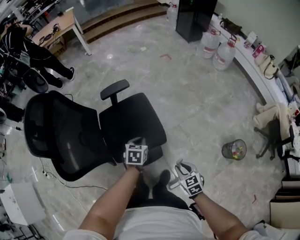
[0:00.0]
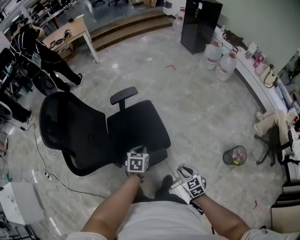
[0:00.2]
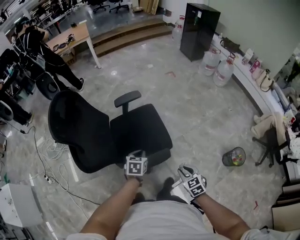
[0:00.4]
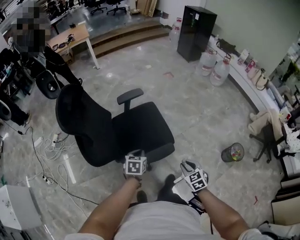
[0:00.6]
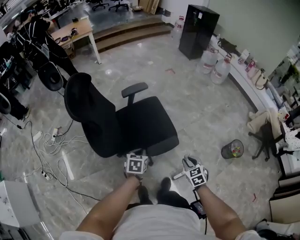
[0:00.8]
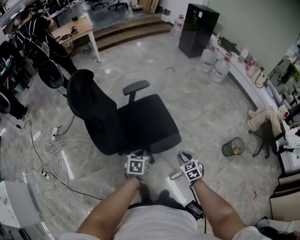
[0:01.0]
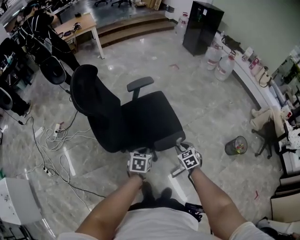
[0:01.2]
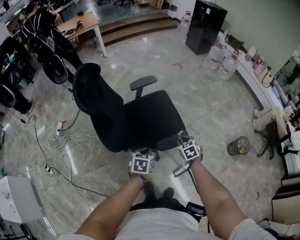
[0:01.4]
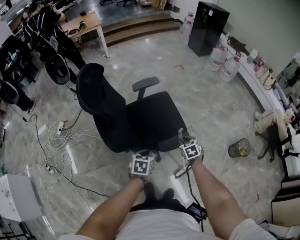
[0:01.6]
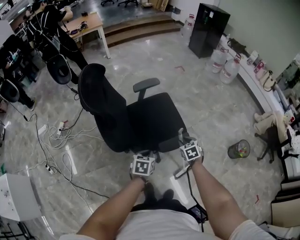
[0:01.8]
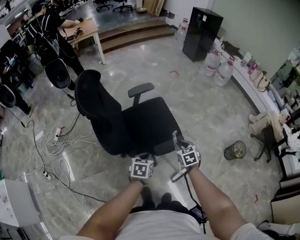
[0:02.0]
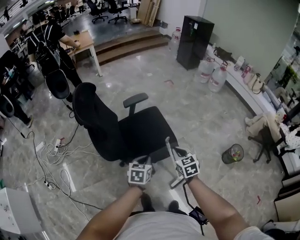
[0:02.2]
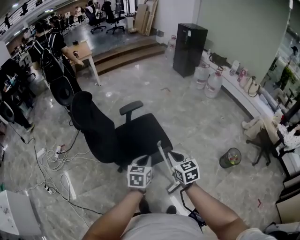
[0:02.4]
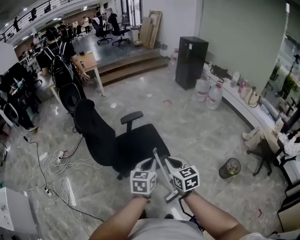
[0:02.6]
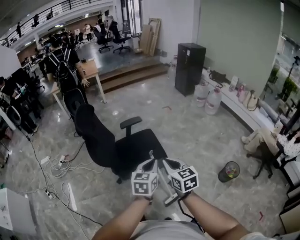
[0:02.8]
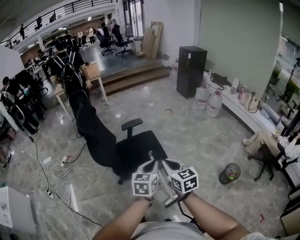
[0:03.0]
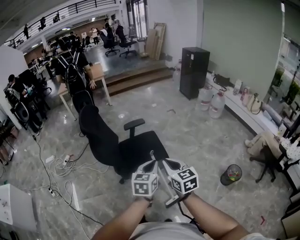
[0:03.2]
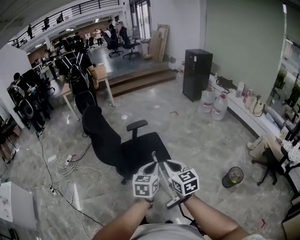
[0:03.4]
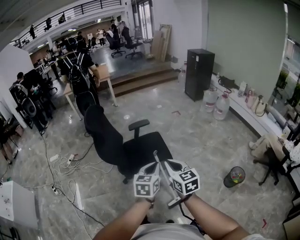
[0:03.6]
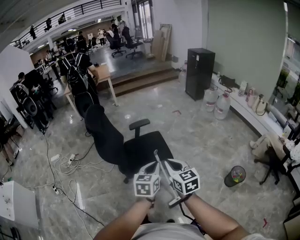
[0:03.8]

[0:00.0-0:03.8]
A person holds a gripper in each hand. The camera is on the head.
0:00.0 to 0:01.2: The left gripper is displaced backward and to the left by some 30 cm; the right gripper goes approximately 20 cm to the left.
0:01.2 to 0:02.6: The left gripper heads upward and to the right, covering some 30 cm, and swivels some 20 degrees. The right gripper goes roughly 30 cm upward, and swivels approximately 30 degrees.
0:02.6 to 0:03.8: The left gripper goes some 10 cm backward; the right gripper travels backward and upward by about 10 cm.

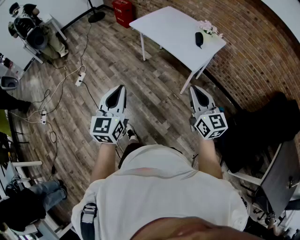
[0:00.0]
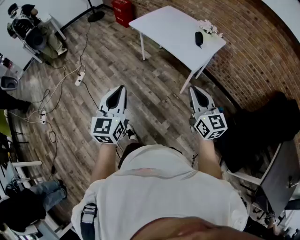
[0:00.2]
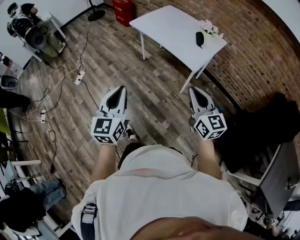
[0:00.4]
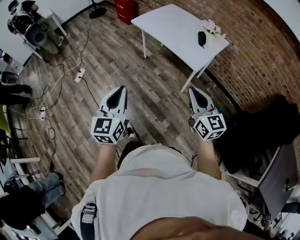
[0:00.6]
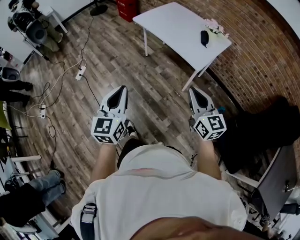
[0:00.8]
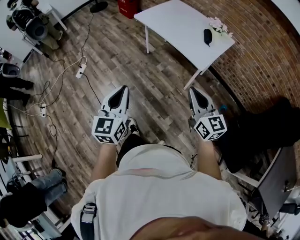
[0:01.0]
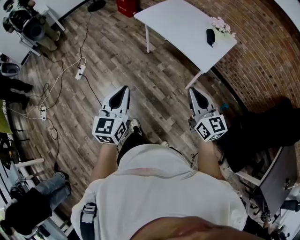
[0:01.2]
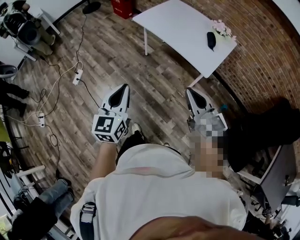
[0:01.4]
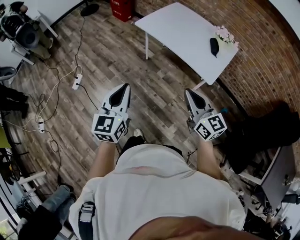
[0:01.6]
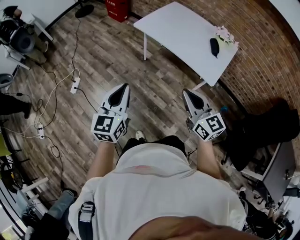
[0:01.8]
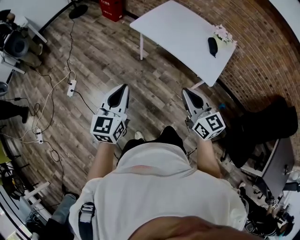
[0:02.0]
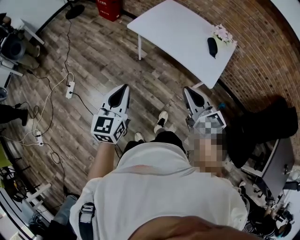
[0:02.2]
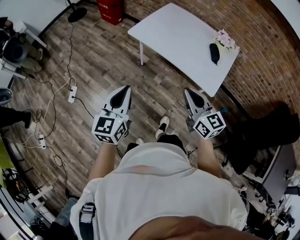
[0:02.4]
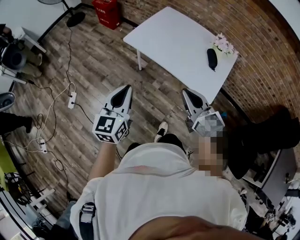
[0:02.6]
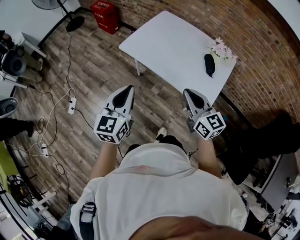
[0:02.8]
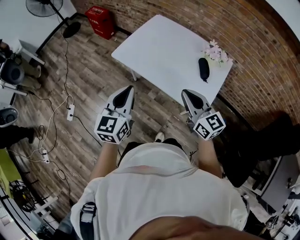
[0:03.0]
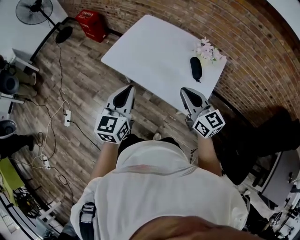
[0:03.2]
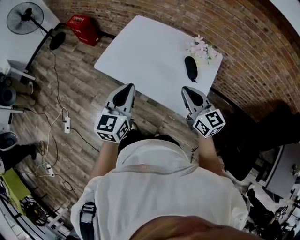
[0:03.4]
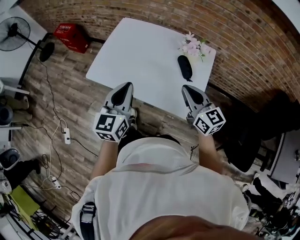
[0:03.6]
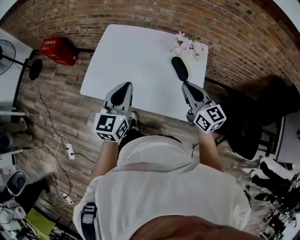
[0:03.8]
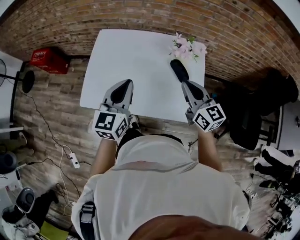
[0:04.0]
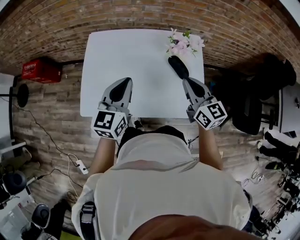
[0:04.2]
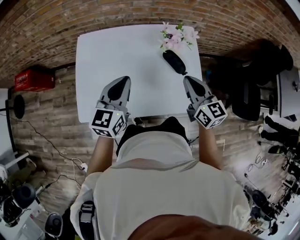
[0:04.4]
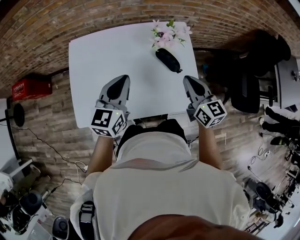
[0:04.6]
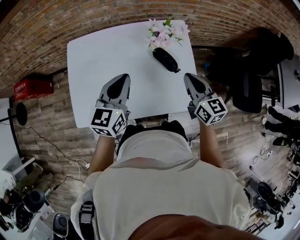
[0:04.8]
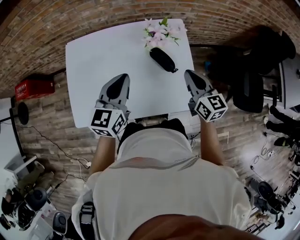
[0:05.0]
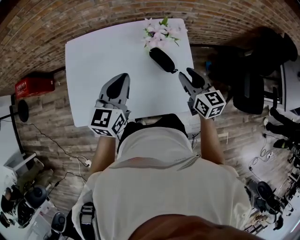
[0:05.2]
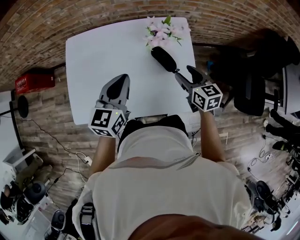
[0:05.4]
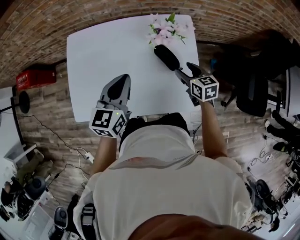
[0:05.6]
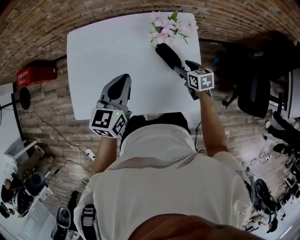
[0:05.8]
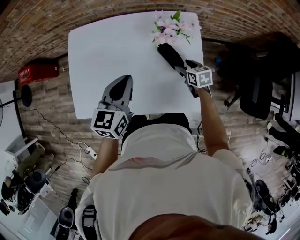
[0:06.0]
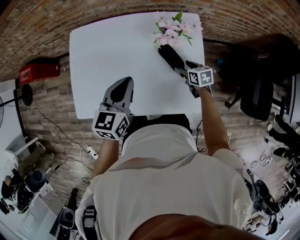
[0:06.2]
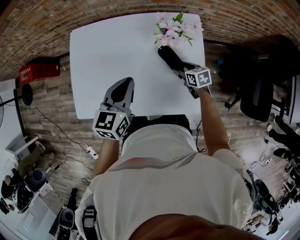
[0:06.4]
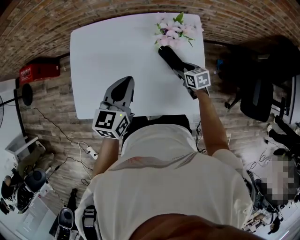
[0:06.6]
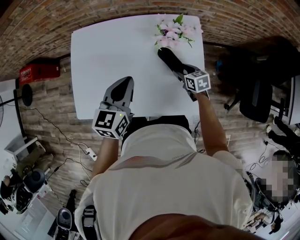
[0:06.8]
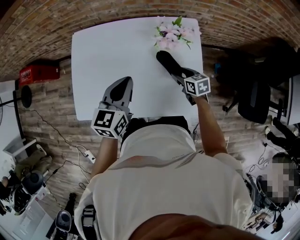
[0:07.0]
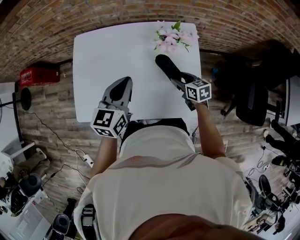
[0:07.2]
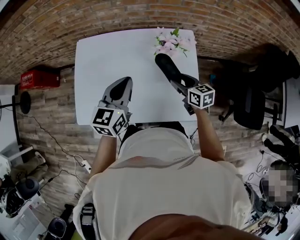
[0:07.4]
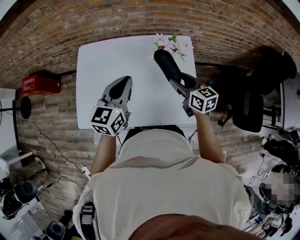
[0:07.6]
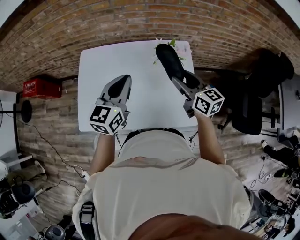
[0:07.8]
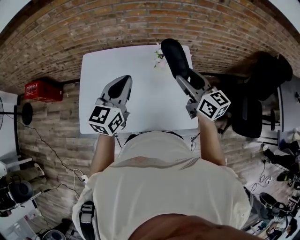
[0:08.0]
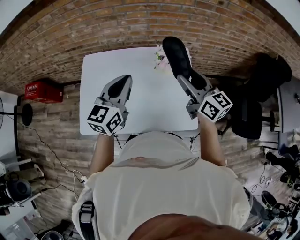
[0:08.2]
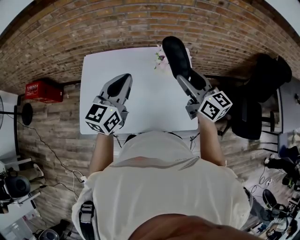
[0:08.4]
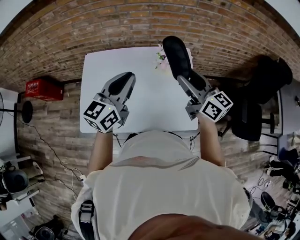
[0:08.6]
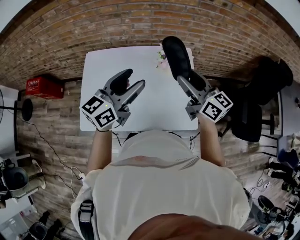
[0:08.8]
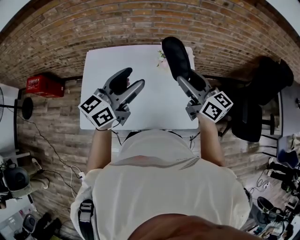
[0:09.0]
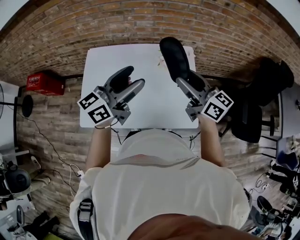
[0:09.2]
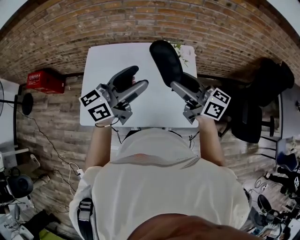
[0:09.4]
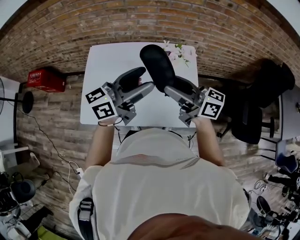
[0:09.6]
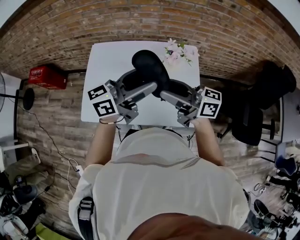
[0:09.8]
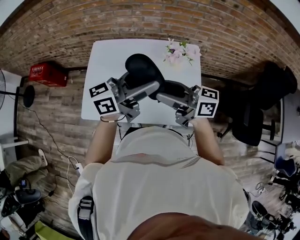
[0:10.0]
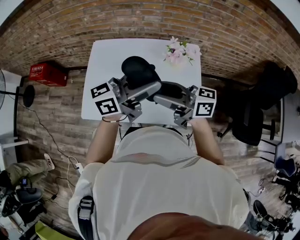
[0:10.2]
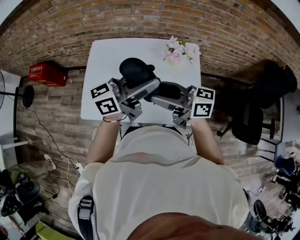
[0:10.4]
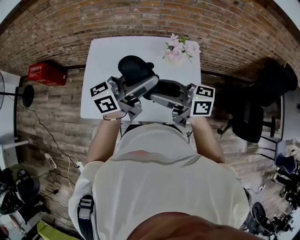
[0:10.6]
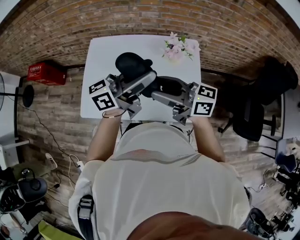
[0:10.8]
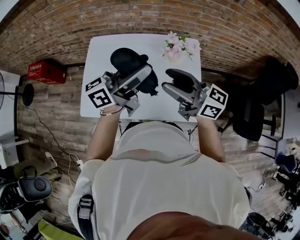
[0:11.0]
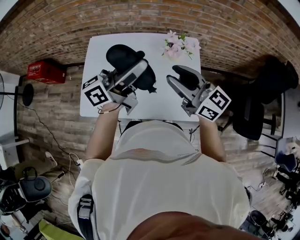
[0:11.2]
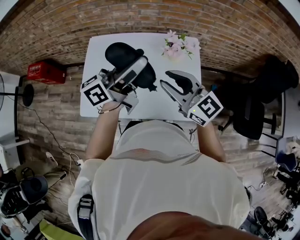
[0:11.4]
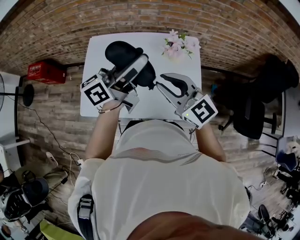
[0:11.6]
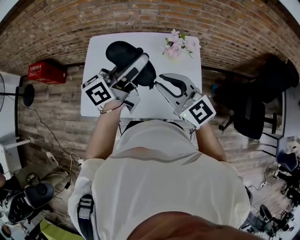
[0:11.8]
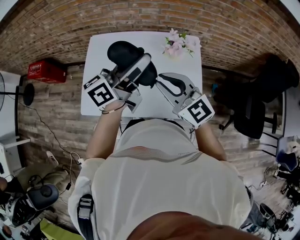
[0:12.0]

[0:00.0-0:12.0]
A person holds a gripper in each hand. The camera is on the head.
0:00.0 to 0:01.6: The grippers both shift forward and to the left by some 20 cm.
0:01.6 to 0:03.0: The grippers both shift forward and to the right by approximately 30 cm.
0:03.0 to 0:04.4: The left gripper shifts by some 35 cm, and rotates about 40 degrees. Meanwhile the right gripper changes place by some 25 cm, and changes its angle by approximately 50 degrees.
0:04.4 to 0:06.0: The left gripper goes approximately 10 cm to the right; the right gripper shifts about 25 cm downward and forward, tips its fingers downward by some 30 degrees, and opens.
0:06.0 to 0:07.6: The right gripper travels upward by roughly 20 cm, and swivels approximately 30 degrees. The left gripper shifts some 5 cm upward.
0:07.6 to 0:09.0: The right gripper is displaced upward by some 15 cm, and turns by approximately 20 degrees. Meanwhile the left gripper heads upward, covering about 10 cm, rotates approximately 30 degrees, and opens up.
0:09.0 to 0:10.4: The left gripper swivels about 20 degrees; the right gripper shifts by some 15 cm, and turns by some 40 degrees.
0:10.4 to 0:12.0: The left gripper moves some 5 cm. The right gripper rolls counterclockwise, seen from behind, by approximately 40 degrees, and closes its fingers.

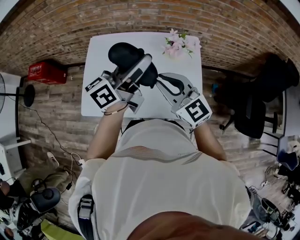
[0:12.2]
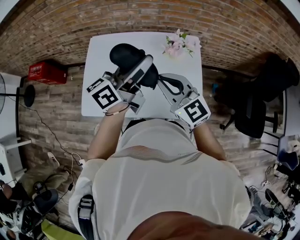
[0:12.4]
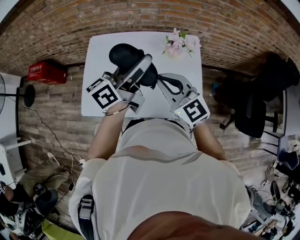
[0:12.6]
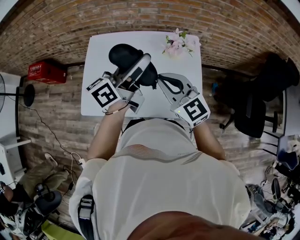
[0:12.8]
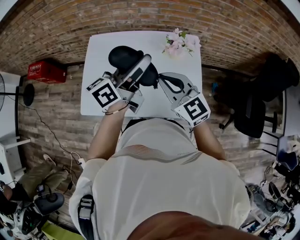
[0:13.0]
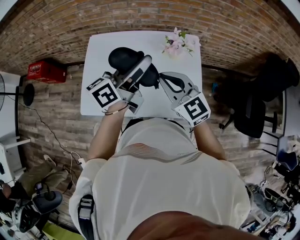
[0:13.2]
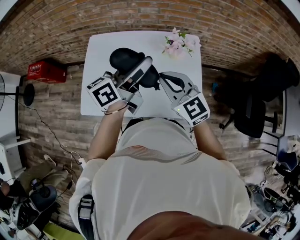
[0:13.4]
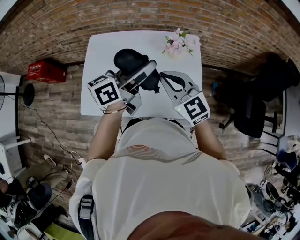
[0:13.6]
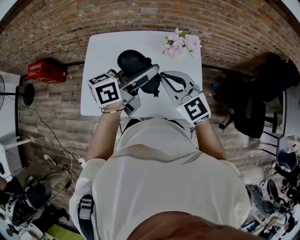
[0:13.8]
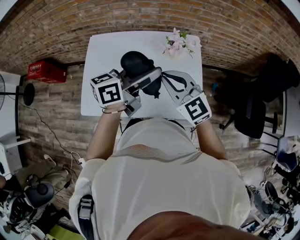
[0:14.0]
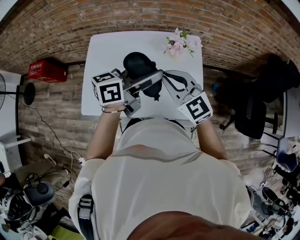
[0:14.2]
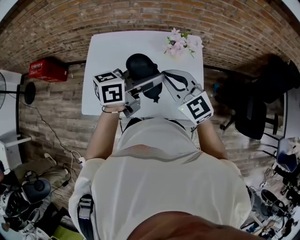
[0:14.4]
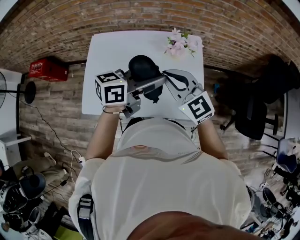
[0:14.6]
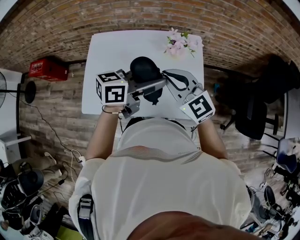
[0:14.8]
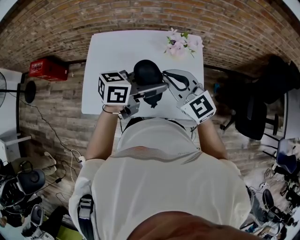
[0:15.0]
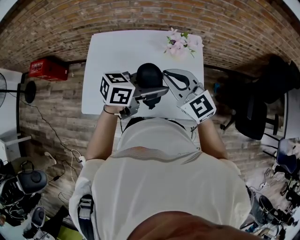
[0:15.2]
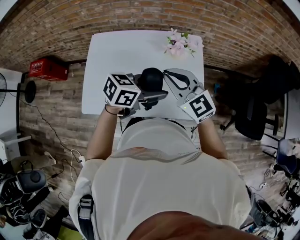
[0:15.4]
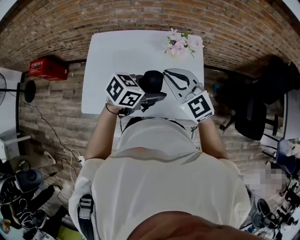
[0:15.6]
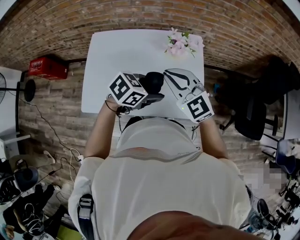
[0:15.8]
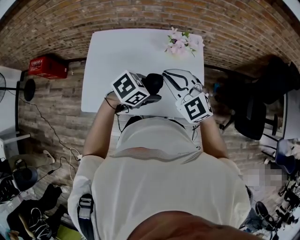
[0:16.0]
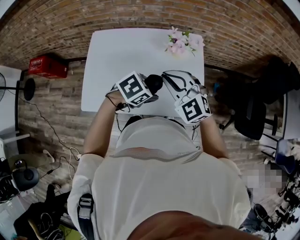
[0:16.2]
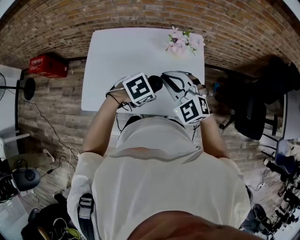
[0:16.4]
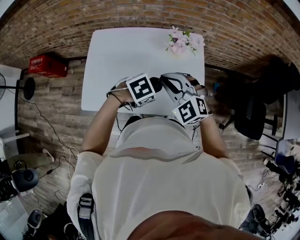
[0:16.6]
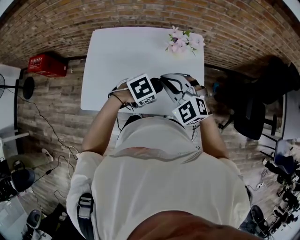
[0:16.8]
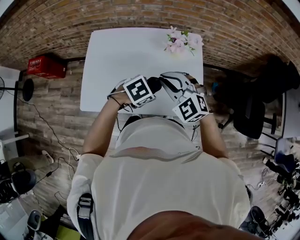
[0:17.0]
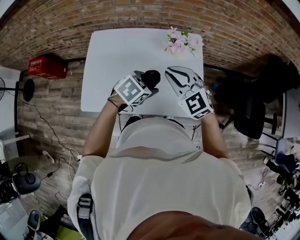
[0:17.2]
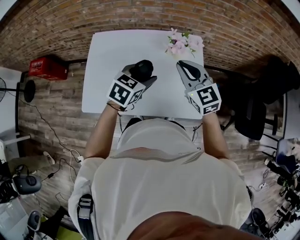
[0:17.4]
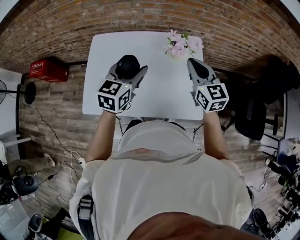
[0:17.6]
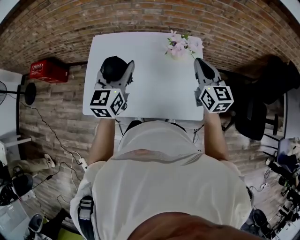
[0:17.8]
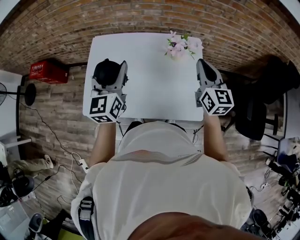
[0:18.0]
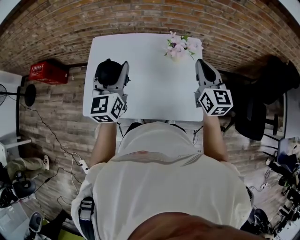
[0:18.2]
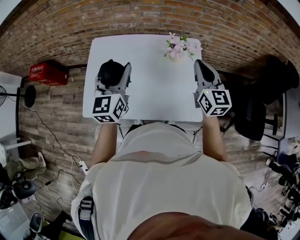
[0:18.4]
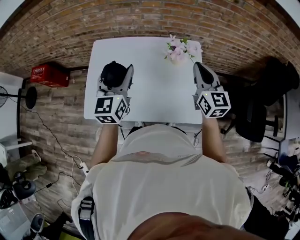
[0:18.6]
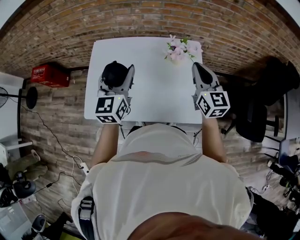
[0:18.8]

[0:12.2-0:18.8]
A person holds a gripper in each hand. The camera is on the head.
0:12.2 to 0:13.8: The left gripper shifts by roughly 5 cm.
0:13.8 to 0:15.4: The left gripper heads downward, to the right and backward, covering approximately 10 cm, and changes its angle by some 40 degrees.
0:15.4 to 0:17.2: The left gripper heads downward, covering about 10 cm, and turns by roughly 30 degrees.
0:17.2 to 0:18.8: The right gripper goes approximately 10 cm to the right and forward, and turns by roughly 40 degrees; the left gripper goes roughly 20 cm upward, to the left and forward, and tilts its fingers roughly 50 degrees upward.

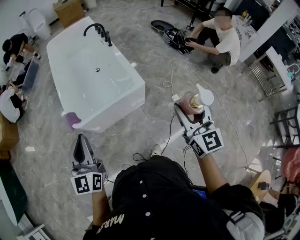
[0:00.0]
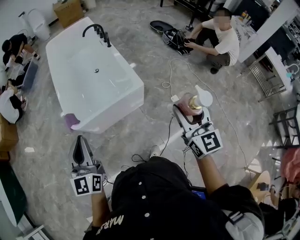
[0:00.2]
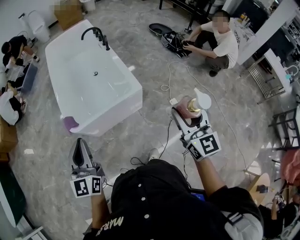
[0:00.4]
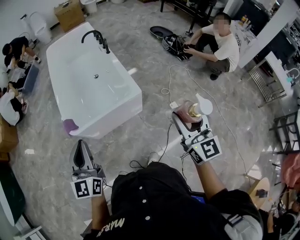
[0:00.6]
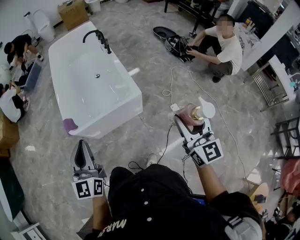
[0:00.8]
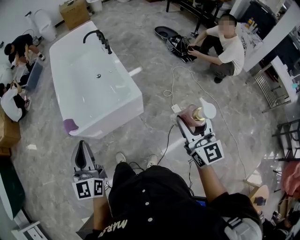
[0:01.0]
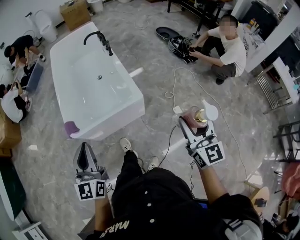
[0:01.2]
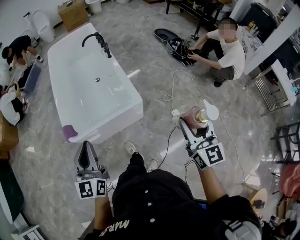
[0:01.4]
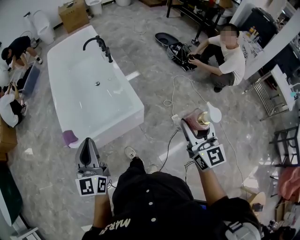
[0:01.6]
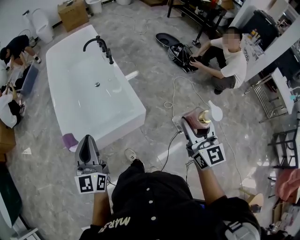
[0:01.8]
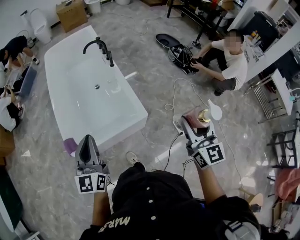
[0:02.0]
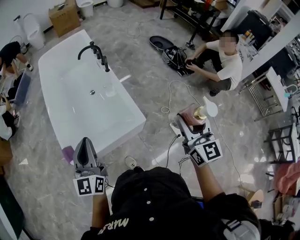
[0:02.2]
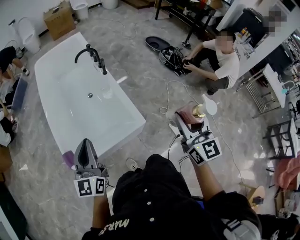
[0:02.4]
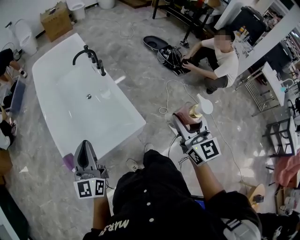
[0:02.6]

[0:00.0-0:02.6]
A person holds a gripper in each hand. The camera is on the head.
0:00.0 to 0:01.2: The two grippers go about 10 cm to the right.
0:01.2 to 0:02.6: The grippers both shift forward by some 25 cm.
